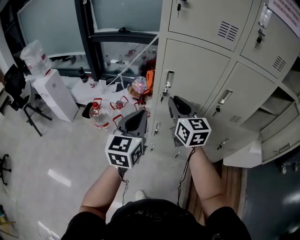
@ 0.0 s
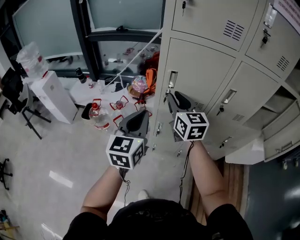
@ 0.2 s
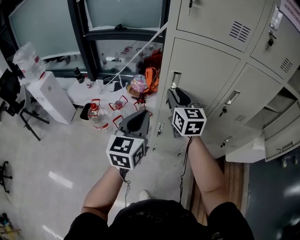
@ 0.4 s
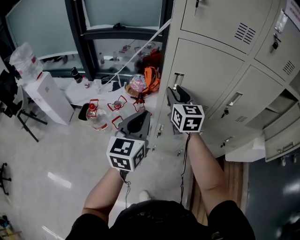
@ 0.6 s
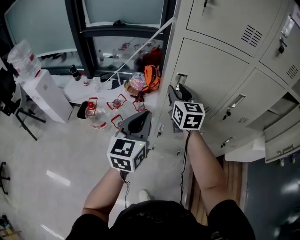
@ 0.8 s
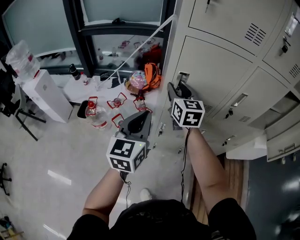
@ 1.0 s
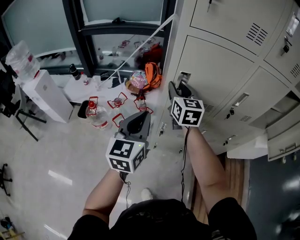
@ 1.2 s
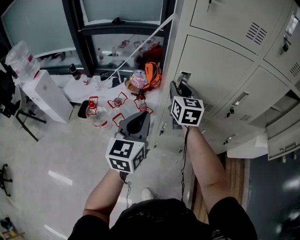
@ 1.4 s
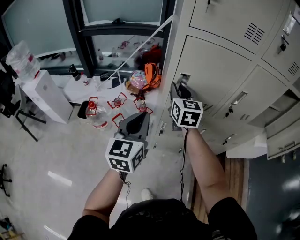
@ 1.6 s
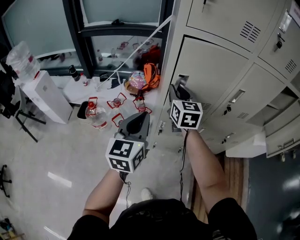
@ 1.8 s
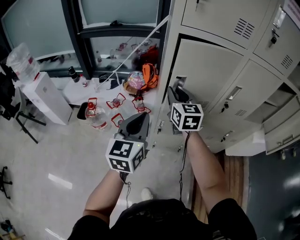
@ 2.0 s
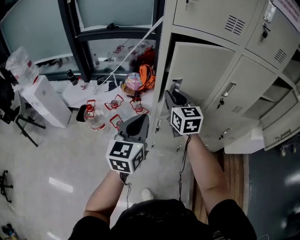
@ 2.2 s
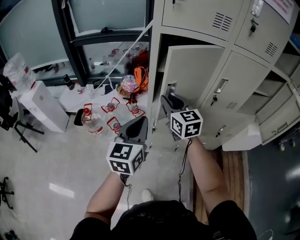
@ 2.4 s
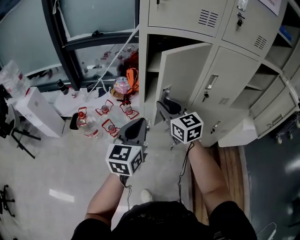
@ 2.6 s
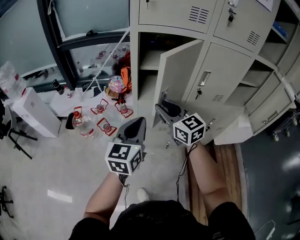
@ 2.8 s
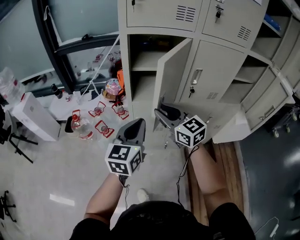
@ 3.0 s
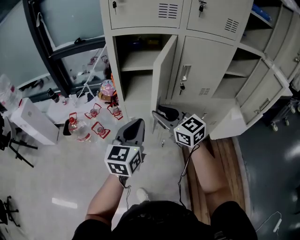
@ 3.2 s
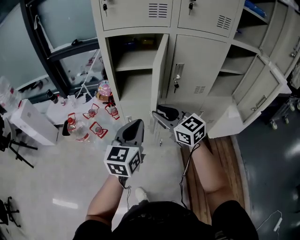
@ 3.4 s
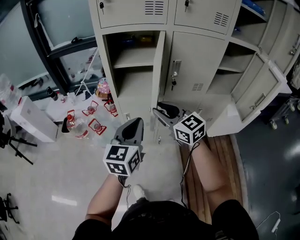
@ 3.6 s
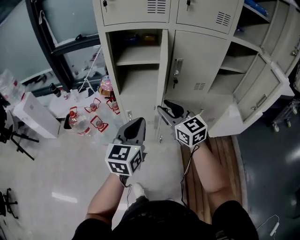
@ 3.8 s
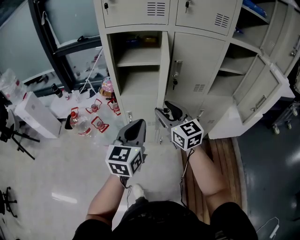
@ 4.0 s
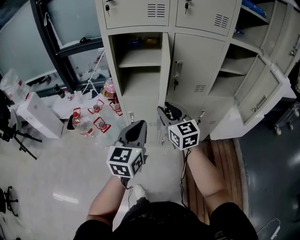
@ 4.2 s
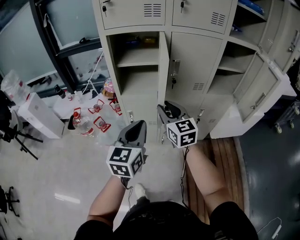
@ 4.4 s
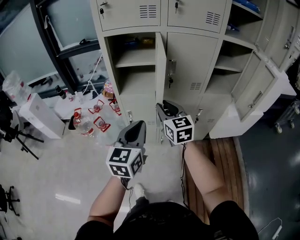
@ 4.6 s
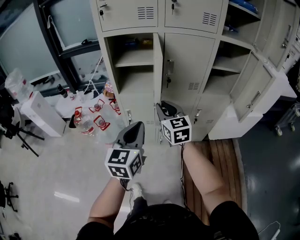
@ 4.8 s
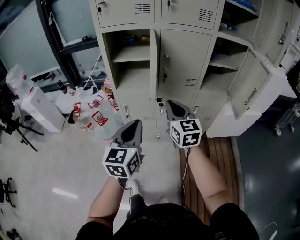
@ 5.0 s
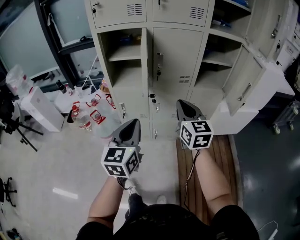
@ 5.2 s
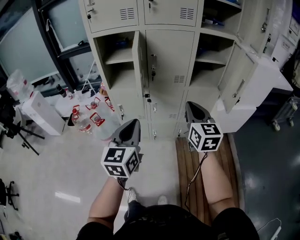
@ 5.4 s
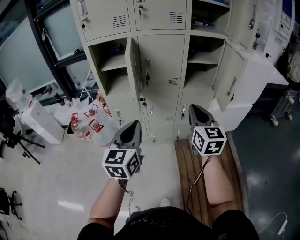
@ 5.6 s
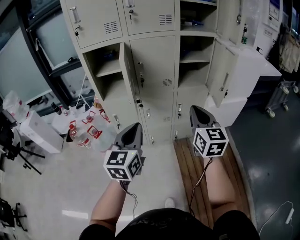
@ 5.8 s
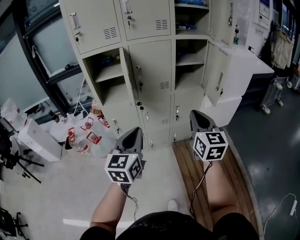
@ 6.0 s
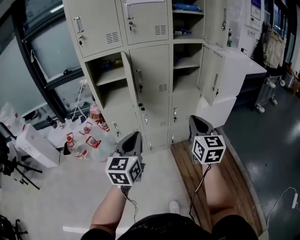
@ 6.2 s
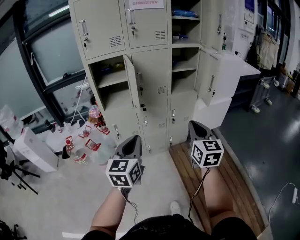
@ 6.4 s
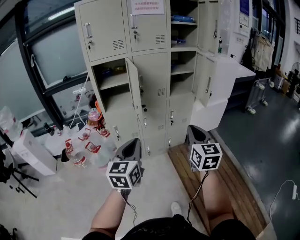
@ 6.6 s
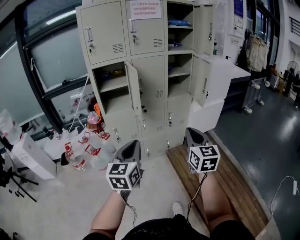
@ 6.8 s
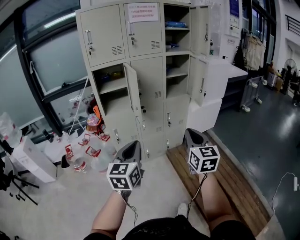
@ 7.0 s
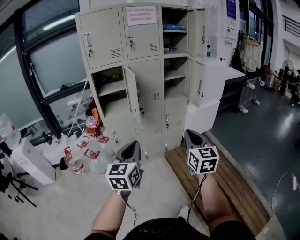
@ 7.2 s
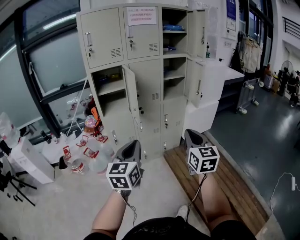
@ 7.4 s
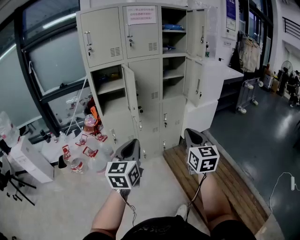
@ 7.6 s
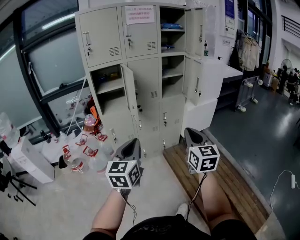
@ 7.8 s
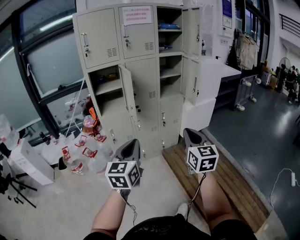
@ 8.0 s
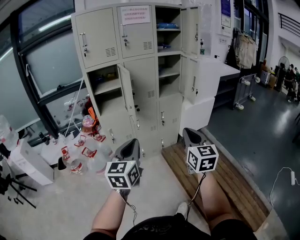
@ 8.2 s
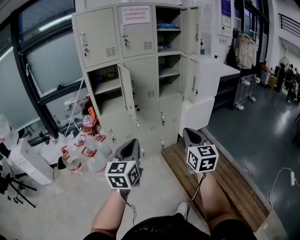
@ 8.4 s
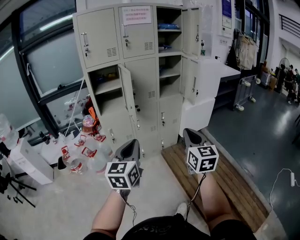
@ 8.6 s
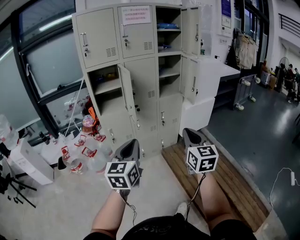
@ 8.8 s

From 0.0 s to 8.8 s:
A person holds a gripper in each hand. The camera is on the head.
From 0.0 s to 1.4 s: The right gripper moves forward, about 15 cm. Meanwhile the left gripper moves forward and to the left, roughly 10 cm.
From 1.4 s to 3.0 s: The left gripper travels to the right and backward by roughly 15 cm, while the right gripper moves backward and to the right, roughly 20 cm, and rotates about 30 degrees.
From 3.0 s to 4.4 s: Both grippers travel together to the right and backward, some 15 cm.
From 4.4 s to 5.8 s: The right gripper heads to the right and backward, covering roughly 35 cm, changes its angle by about 20 degrees, and closes. The left gripper goes about 20 cm to the right and backward.
From 5.8 s to 7.4 s: The two grippers go some 25 cm backward.
From 7.4 s to 8.8 s: The grippers stay close to where they were, moving slightly.

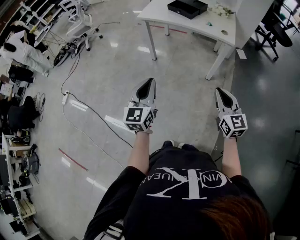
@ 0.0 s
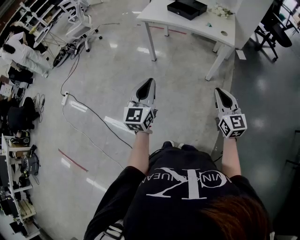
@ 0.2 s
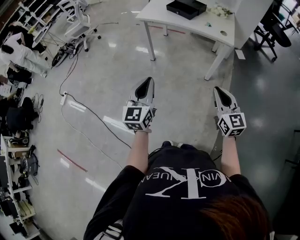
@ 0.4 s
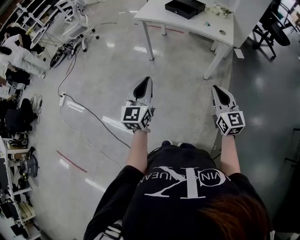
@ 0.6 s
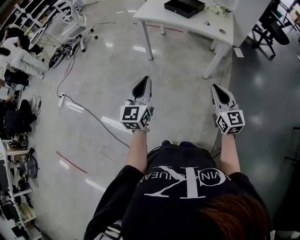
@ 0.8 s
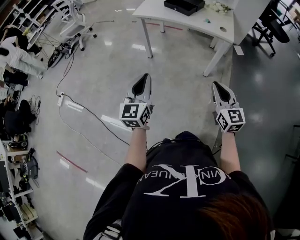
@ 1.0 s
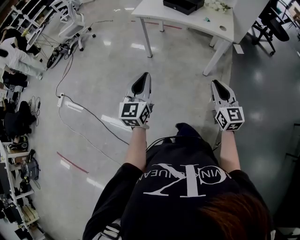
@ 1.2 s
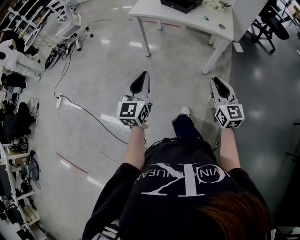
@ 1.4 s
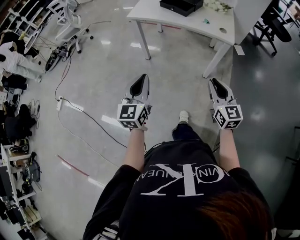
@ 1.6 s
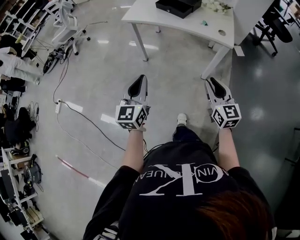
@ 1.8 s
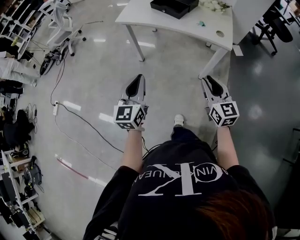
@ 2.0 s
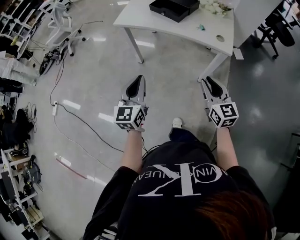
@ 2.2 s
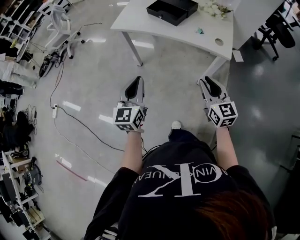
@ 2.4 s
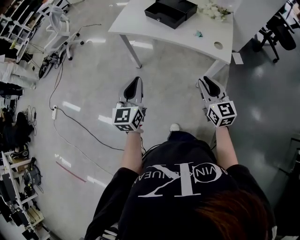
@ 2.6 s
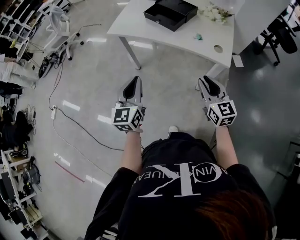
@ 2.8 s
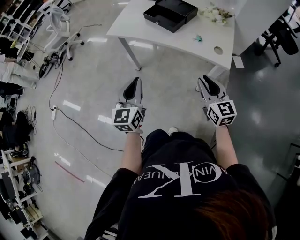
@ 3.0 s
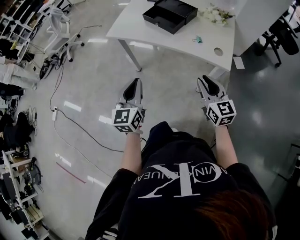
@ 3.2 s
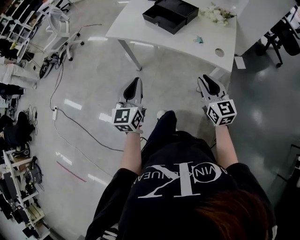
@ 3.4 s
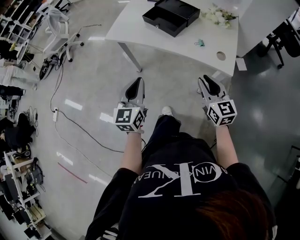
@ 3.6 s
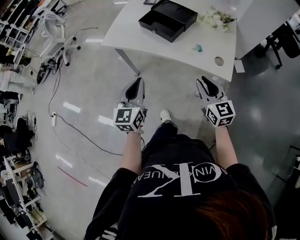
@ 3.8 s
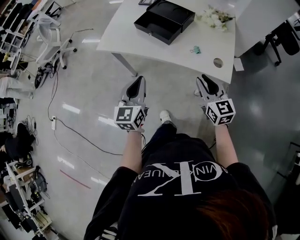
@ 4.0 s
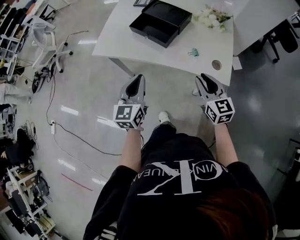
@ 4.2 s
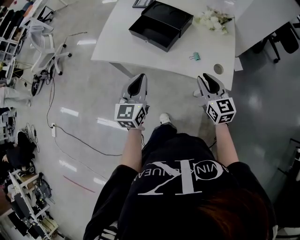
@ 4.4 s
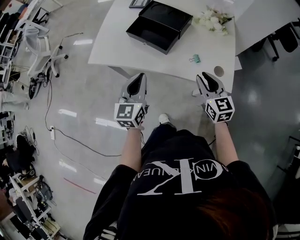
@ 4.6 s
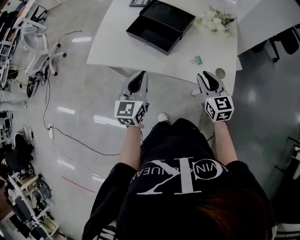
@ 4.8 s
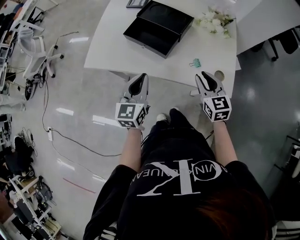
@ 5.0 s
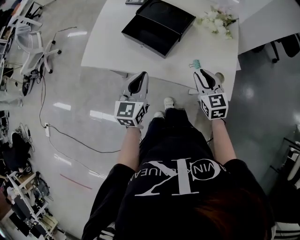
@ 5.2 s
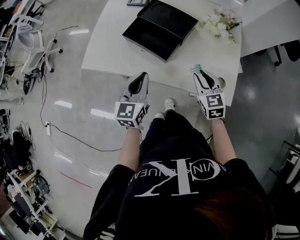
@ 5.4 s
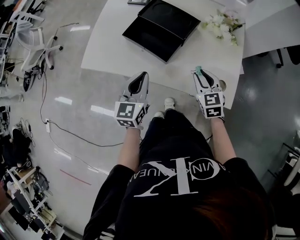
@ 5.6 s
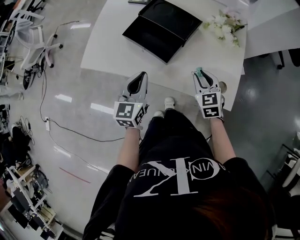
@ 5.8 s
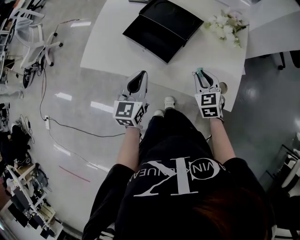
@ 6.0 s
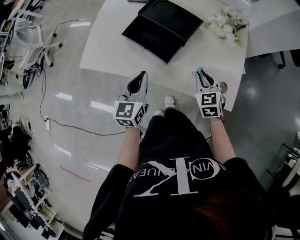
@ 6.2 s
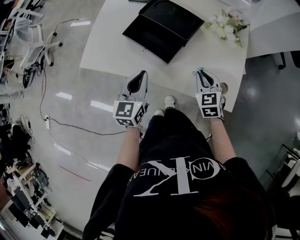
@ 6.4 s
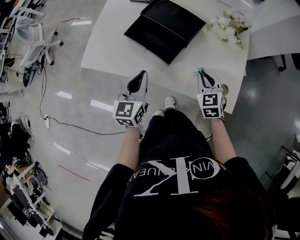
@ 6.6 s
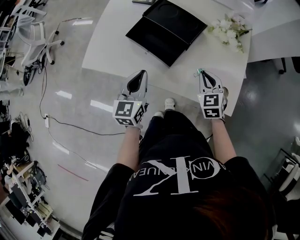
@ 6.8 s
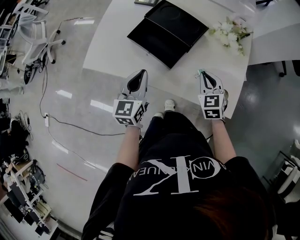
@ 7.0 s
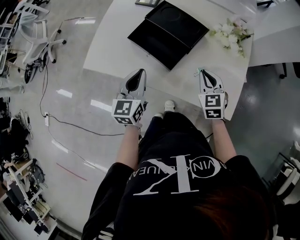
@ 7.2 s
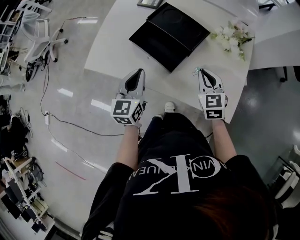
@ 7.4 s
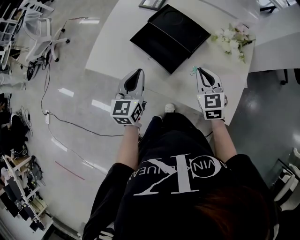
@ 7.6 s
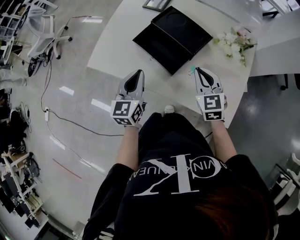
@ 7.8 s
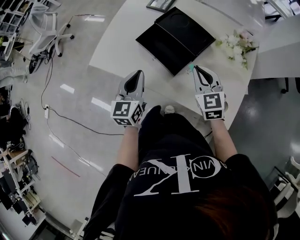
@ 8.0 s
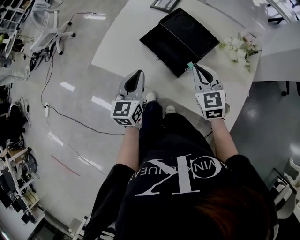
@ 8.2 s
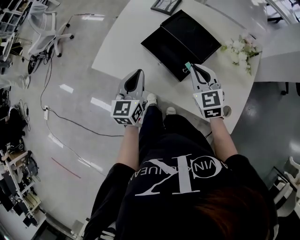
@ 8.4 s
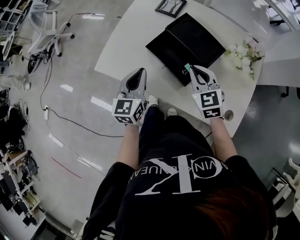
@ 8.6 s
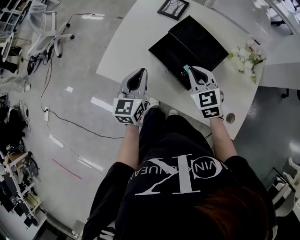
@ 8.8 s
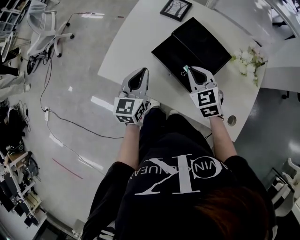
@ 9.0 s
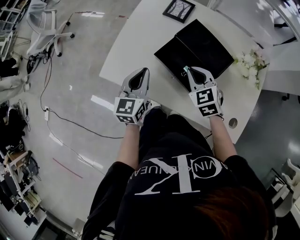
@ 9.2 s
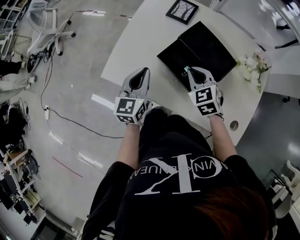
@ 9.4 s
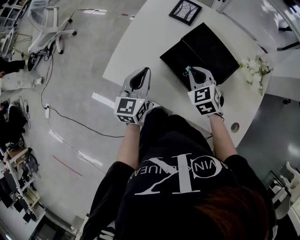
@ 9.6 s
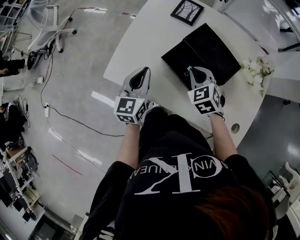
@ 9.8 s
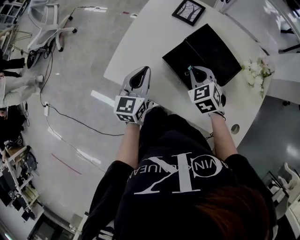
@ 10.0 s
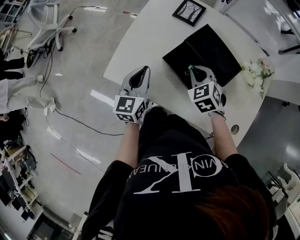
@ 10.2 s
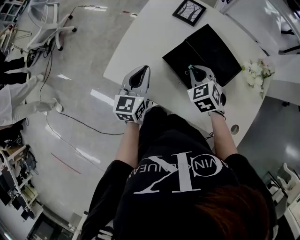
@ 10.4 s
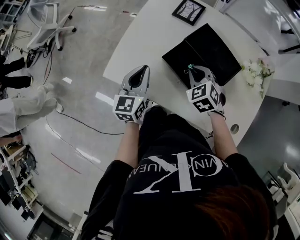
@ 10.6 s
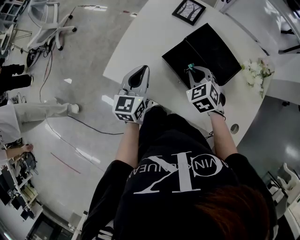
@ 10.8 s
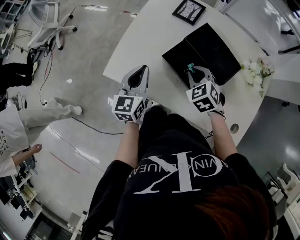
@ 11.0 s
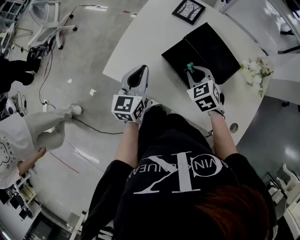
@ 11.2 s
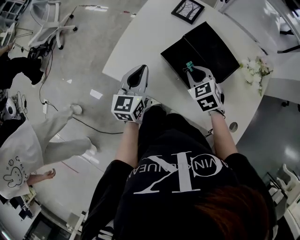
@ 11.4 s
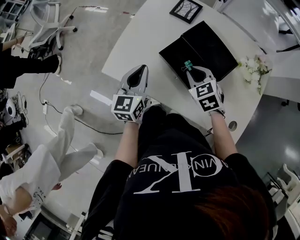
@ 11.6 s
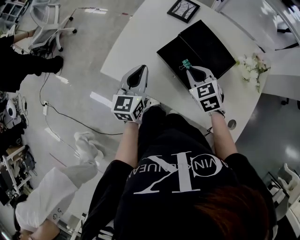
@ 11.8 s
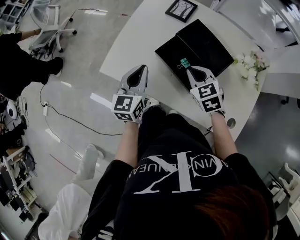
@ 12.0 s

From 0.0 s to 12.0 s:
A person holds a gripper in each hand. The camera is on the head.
From 0.0 s to 1.6 s: The grippers both shift forward by some 10 cm.
From 1.6 s to 3.0 s: The right gripper is displaced forward by about 25 cm. Meanwhile the left gripper is displaced forward and to the right by approximately 25 cm.
From 3.0 s to 4.4 s: Both grippers travel together forward, roughly 20 cm.
From 4.4 s to 6.0 s: Both grippers move forward and downward, about 15 cm. The right gripper turns by about 30 degrees.
From 6.0 s to 7.6 s: The right gripper travels forward and upward by some 10 cm.
From 7.6 s to 9.0 s: The left gripper goes some 10 cm forward and to the left. Meanwhile the right gripper goes about 15 cm to the left and forward.
From 9.0 s to 10.4 s: The right gripper shifts by roughly 5 cm. Meanwhile the left gripper shifts by some 5 cm.
From 10.4 s to 12.0 s: There are only small adjustments of the grippers.

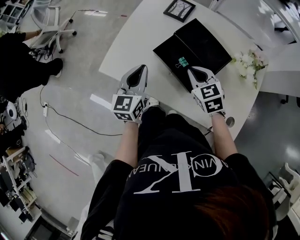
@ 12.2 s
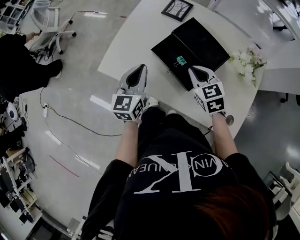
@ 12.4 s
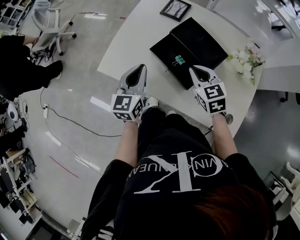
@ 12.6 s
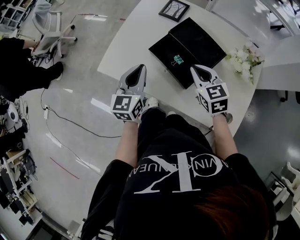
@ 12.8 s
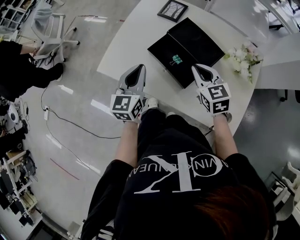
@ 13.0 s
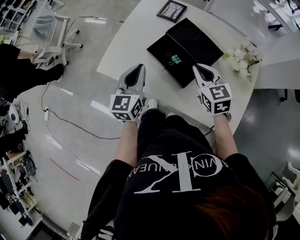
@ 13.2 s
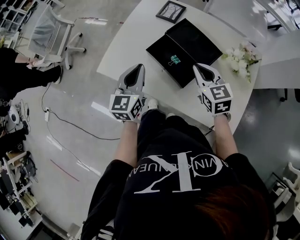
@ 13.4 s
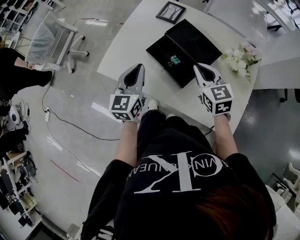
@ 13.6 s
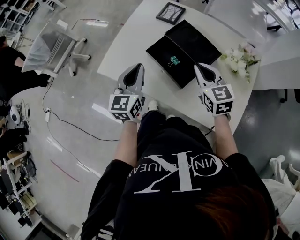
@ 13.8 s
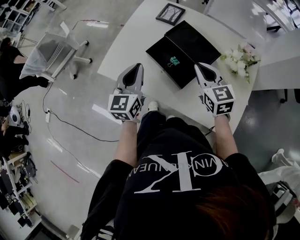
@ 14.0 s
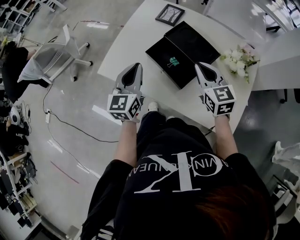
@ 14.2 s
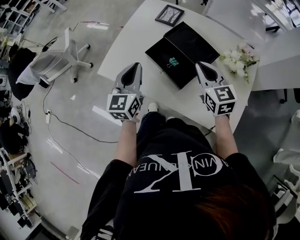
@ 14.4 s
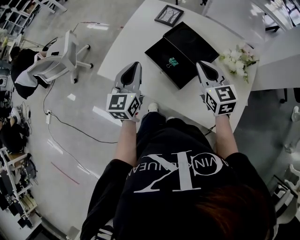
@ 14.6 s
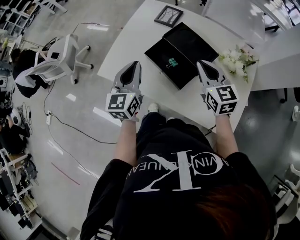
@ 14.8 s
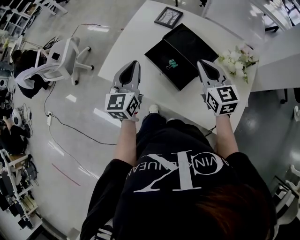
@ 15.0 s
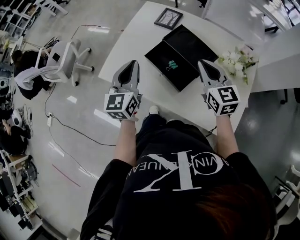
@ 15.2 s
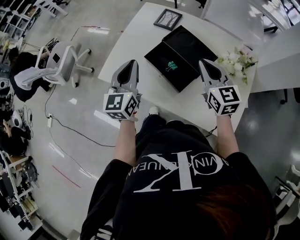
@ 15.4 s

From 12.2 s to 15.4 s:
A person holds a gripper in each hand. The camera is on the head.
From 12.2 s to 13.8 s: The right gripper heads upward and to the right, covering about 10 cm.
From 13.8 s to 15.4 s: The right gripper travels upward by about 5 cm. The left gripper moves about 5 cm.
